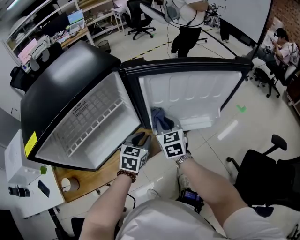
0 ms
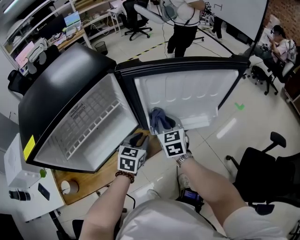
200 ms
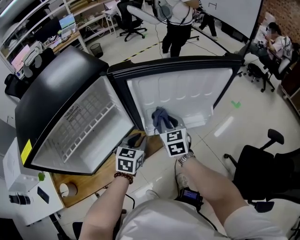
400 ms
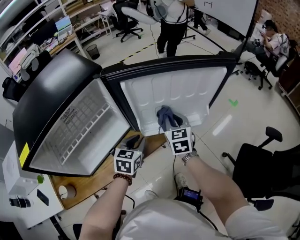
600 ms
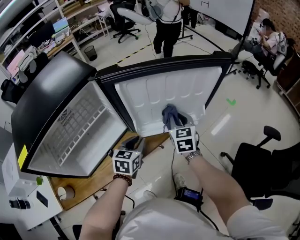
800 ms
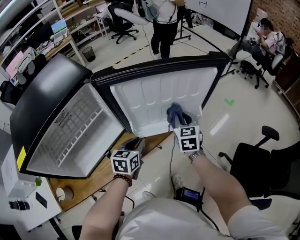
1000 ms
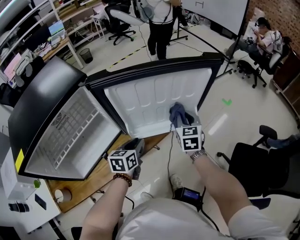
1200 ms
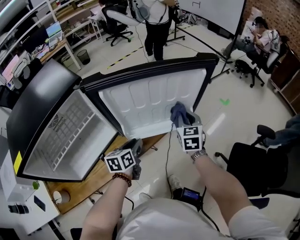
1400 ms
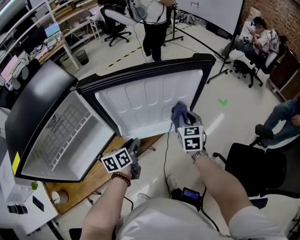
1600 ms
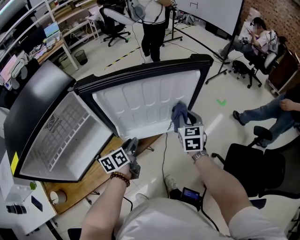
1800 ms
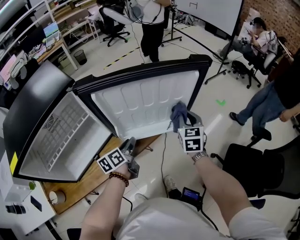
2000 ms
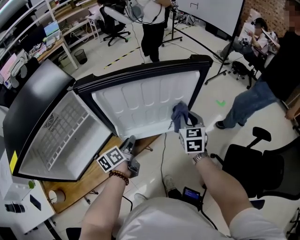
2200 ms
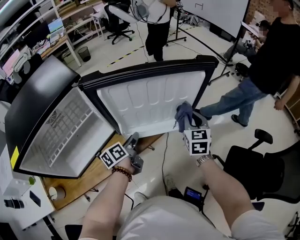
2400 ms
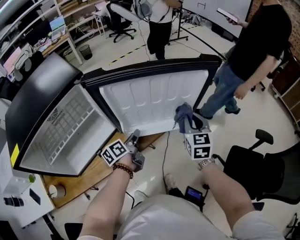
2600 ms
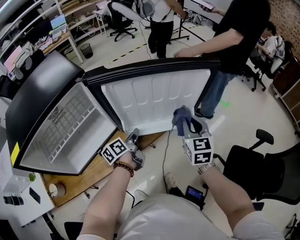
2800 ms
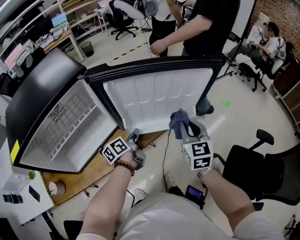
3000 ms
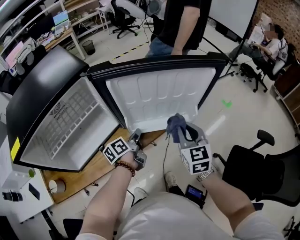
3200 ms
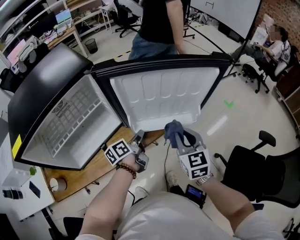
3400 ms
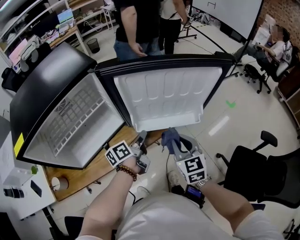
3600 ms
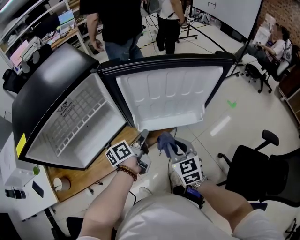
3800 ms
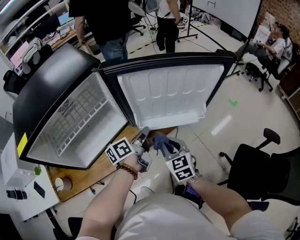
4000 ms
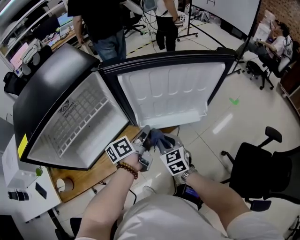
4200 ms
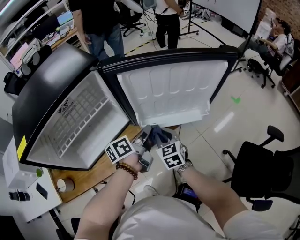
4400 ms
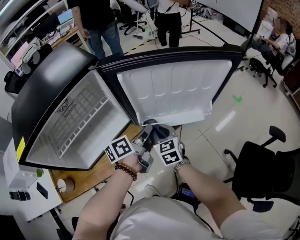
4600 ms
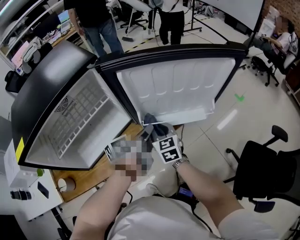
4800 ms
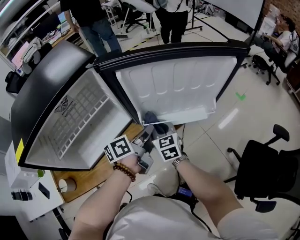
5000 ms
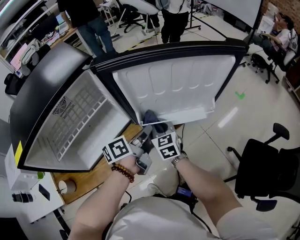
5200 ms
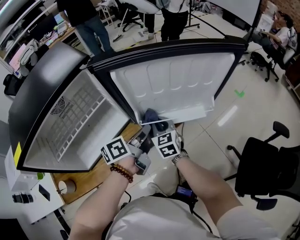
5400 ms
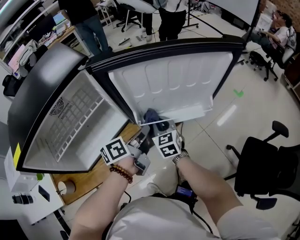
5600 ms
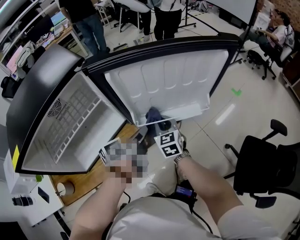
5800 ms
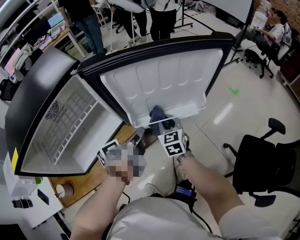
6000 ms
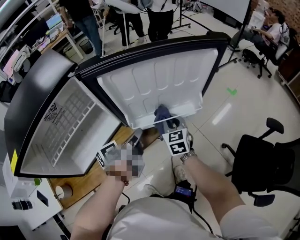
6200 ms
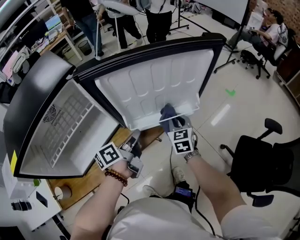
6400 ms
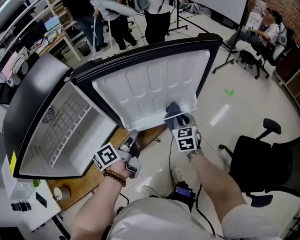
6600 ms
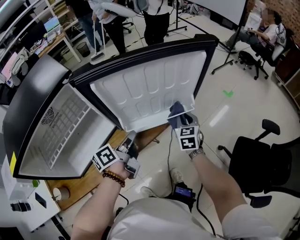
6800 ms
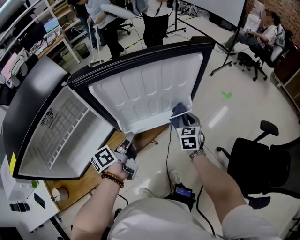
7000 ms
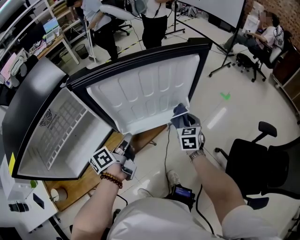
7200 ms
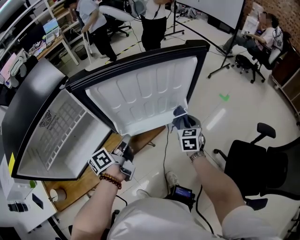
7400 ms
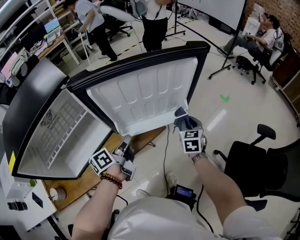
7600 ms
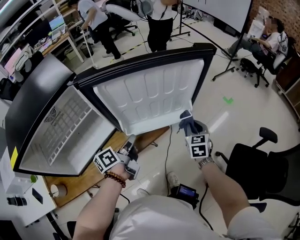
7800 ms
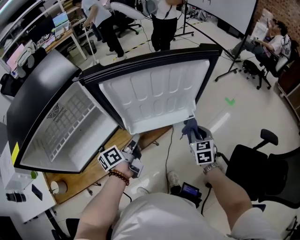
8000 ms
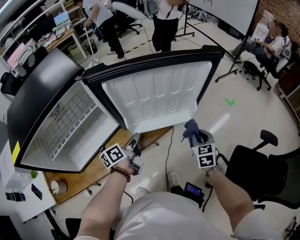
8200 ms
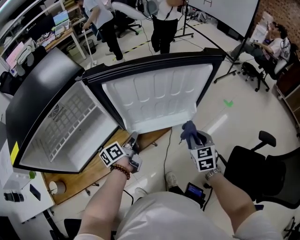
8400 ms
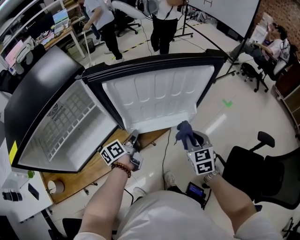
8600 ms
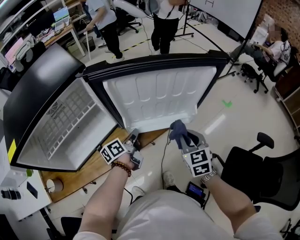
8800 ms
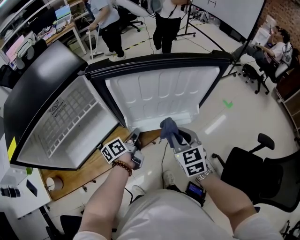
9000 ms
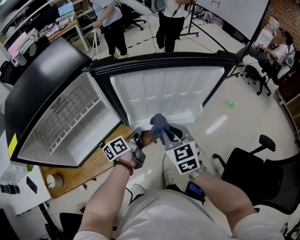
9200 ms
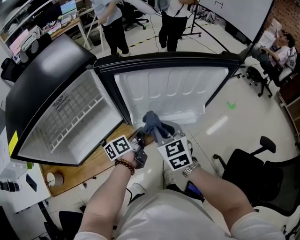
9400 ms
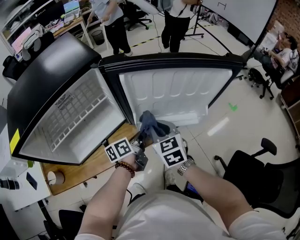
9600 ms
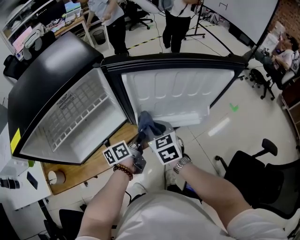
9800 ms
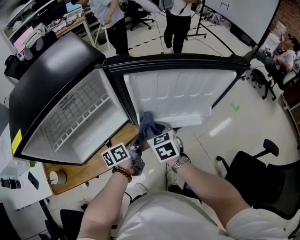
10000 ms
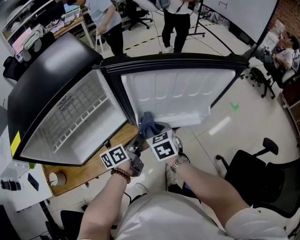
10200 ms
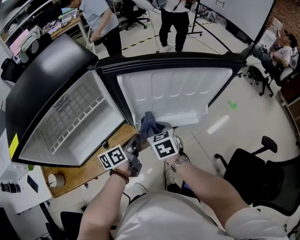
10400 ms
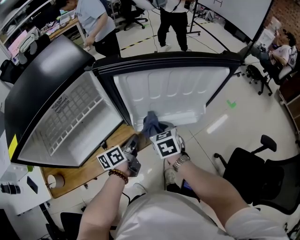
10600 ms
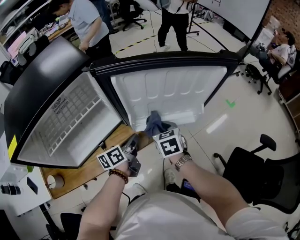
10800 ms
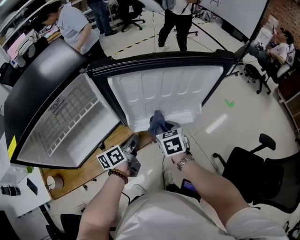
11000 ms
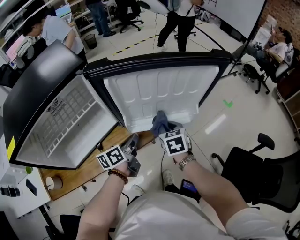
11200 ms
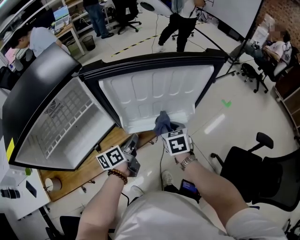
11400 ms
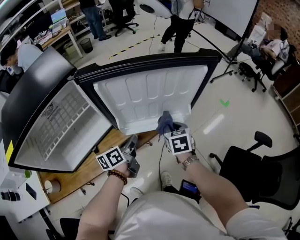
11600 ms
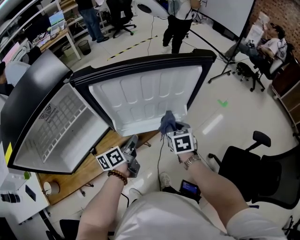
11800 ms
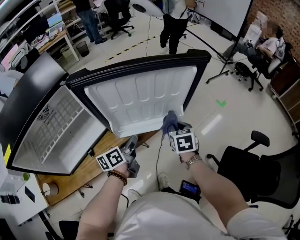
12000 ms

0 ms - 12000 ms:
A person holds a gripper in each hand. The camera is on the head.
0 ms - 1600 ms: The right gripper travels to the right by roughly 25 cm, and swivels roughly 20 degrees, while the left gripper moves to the right, approximately 5 cm, and turns by about 40 degrees.
1600 ms - 3000 ms: The right gripper travels backward by some 10 cm; the left gripper turns by approximately 30 degrees, and closes up.
3000 ms - 4400 ms: The left gripper goes approximately 5 cm upward. The right gripper heads to the left and downward, covering about 20 cm.
4400 ms - 6000 ms: The right gripper travels forward by some 5 cm.
6000 ms - 7600 ms: The right gripper shifts approximately 20 cm to the right.
7600 ms - 9000 ms: The left gripper travels downward by roughly 5 cm. Meanwhile the right gripper is displaced to the left, backward and upward by approximately 15 cm, and changes its angle by approximately 30 degrees.
9000 ms - 10400 ms: The right gripper moves to the left and downward, roughly 15 cm.
10400 ms - 12000 ms: The right gripper is displaced to the right by some 20 cm; the left gripper shifts some 10 cm to the right.

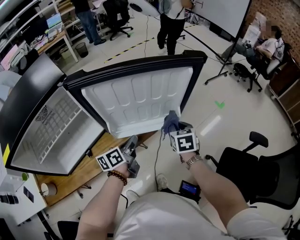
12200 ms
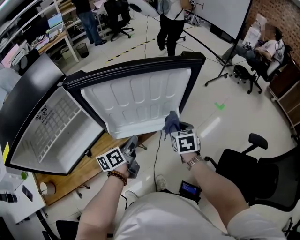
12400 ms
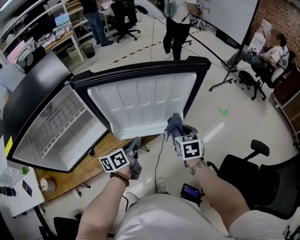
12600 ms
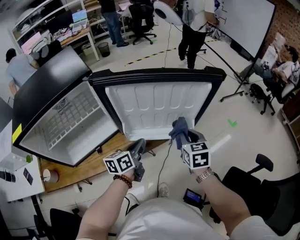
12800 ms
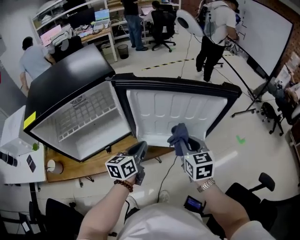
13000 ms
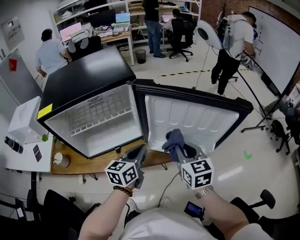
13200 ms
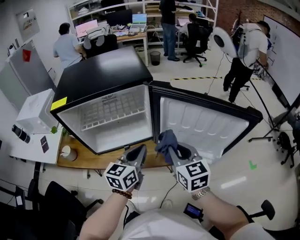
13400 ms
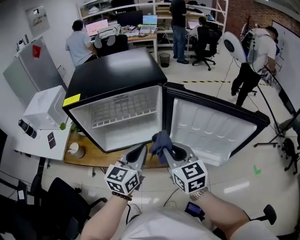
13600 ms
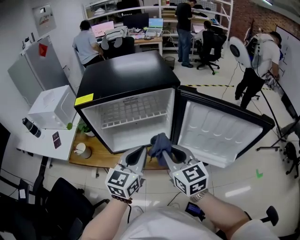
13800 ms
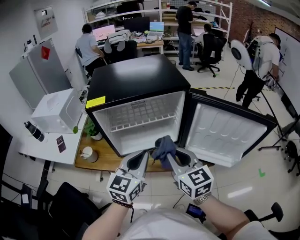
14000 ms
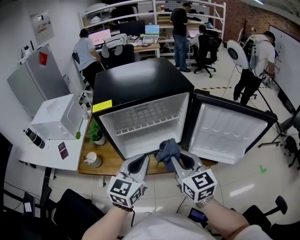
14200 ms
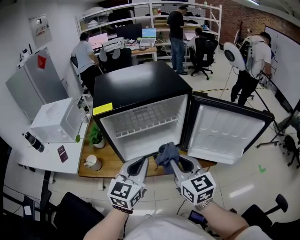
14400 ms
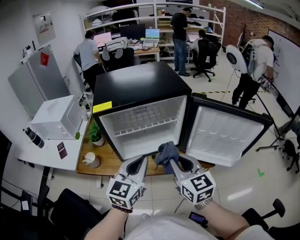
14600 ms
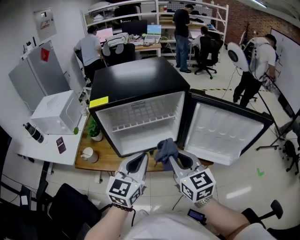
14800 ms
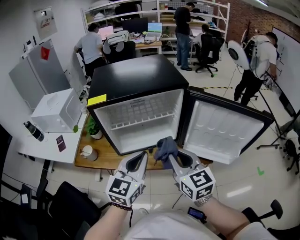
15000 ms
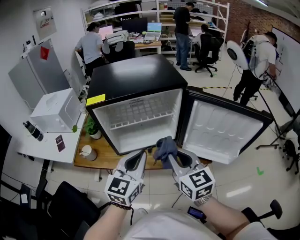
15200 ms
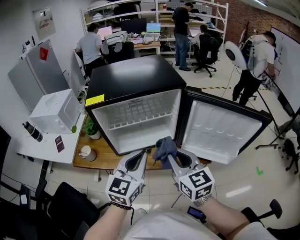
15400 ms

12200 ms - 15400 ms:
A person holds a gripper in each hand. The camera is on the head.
12200 ms - 13800 ms: The left gripper changes place by roughly 30 cm, and changes its angle by roughly 60 degrees. The right gripper shifts by approximately 40 cm, and tilts its fingers about 30 degrees upward.
13800 ms - 15400 ms: The left gripper changes place by some 5 cm.

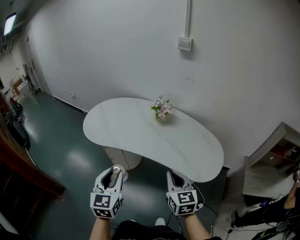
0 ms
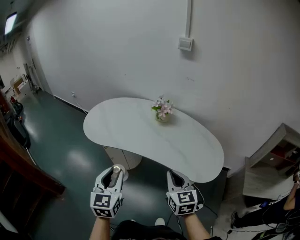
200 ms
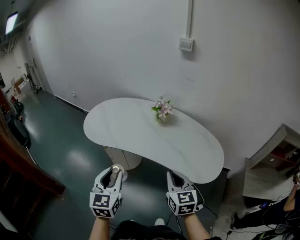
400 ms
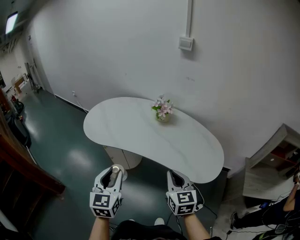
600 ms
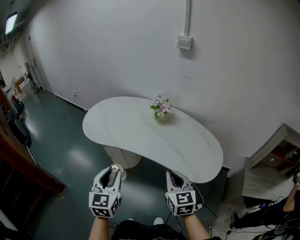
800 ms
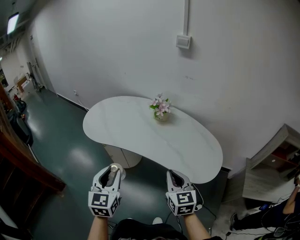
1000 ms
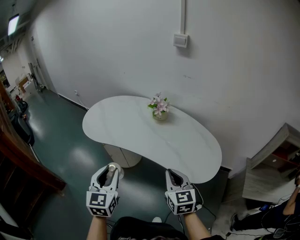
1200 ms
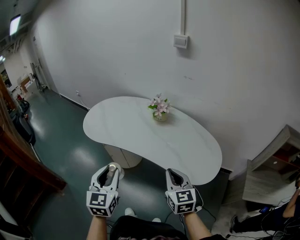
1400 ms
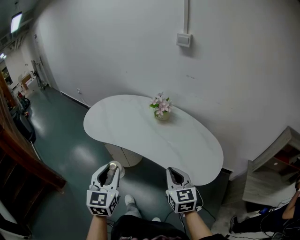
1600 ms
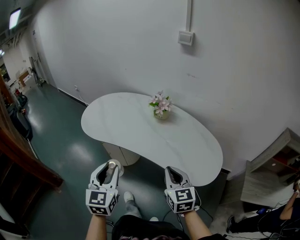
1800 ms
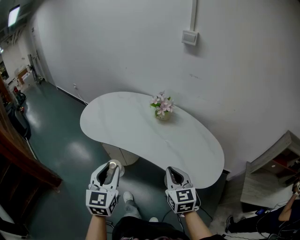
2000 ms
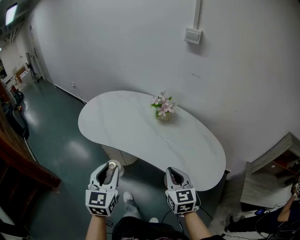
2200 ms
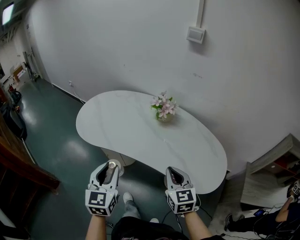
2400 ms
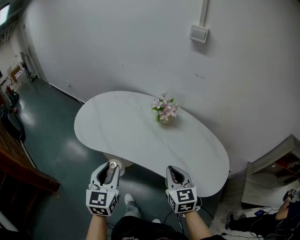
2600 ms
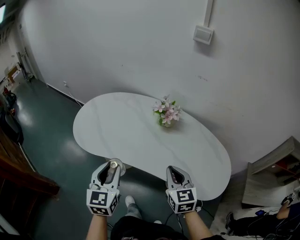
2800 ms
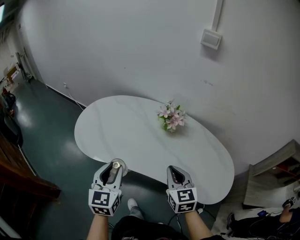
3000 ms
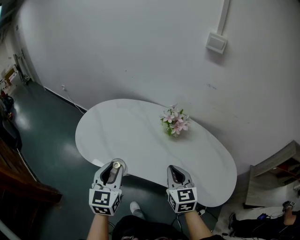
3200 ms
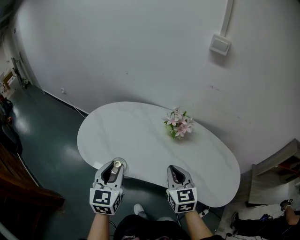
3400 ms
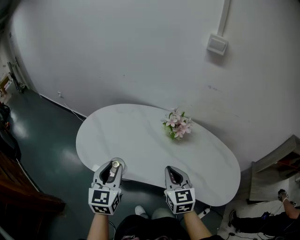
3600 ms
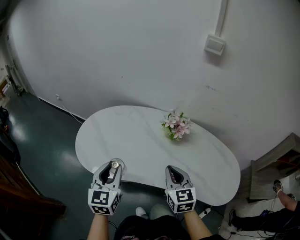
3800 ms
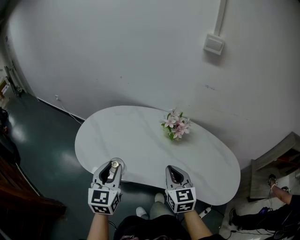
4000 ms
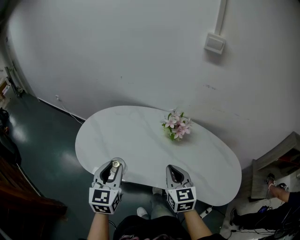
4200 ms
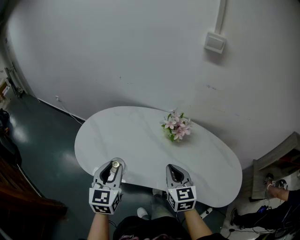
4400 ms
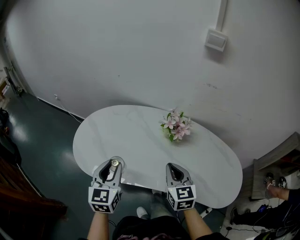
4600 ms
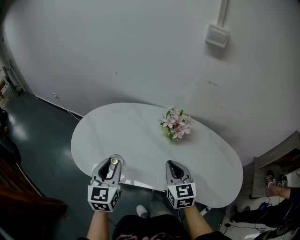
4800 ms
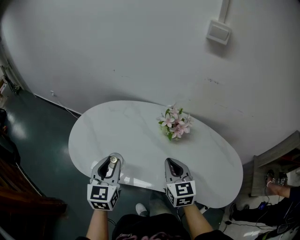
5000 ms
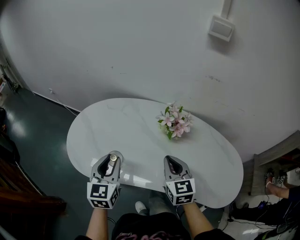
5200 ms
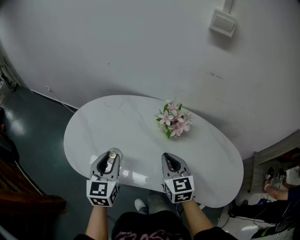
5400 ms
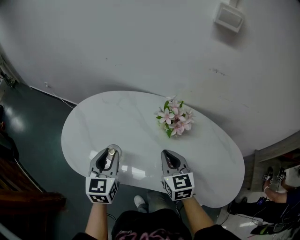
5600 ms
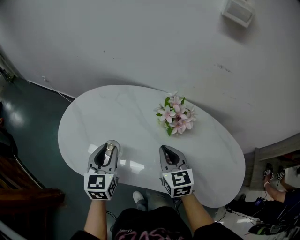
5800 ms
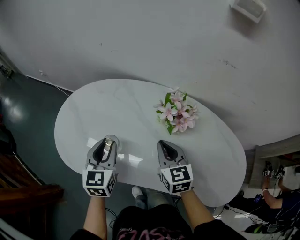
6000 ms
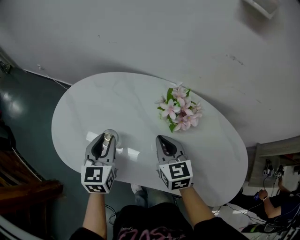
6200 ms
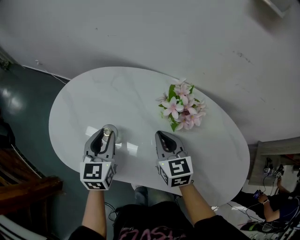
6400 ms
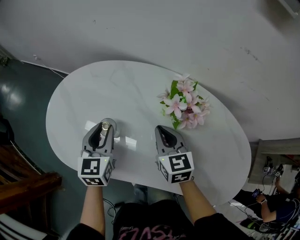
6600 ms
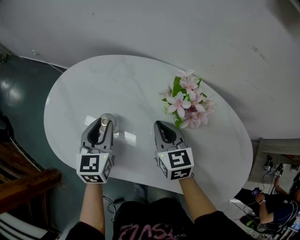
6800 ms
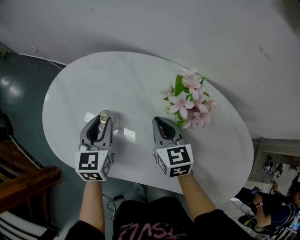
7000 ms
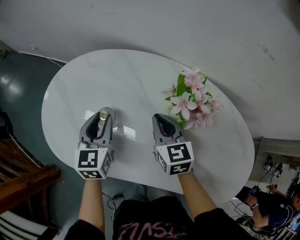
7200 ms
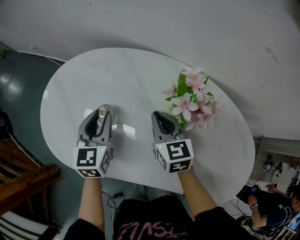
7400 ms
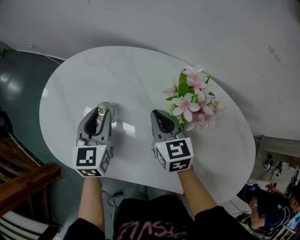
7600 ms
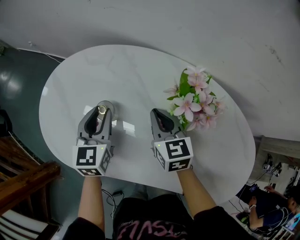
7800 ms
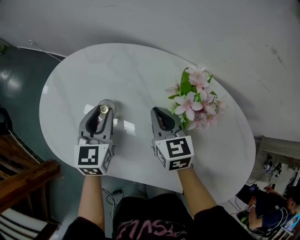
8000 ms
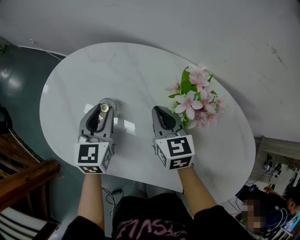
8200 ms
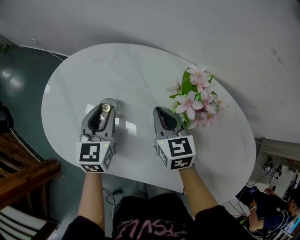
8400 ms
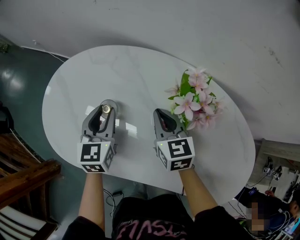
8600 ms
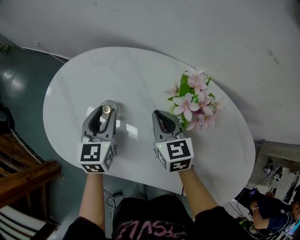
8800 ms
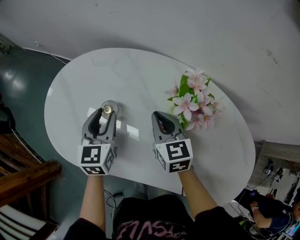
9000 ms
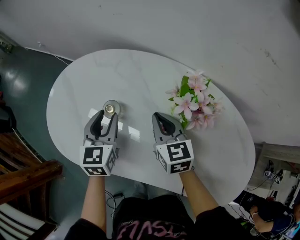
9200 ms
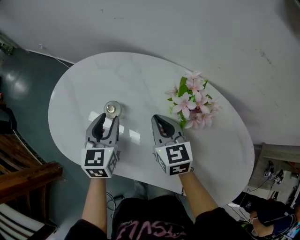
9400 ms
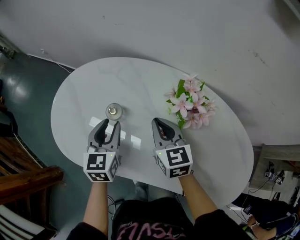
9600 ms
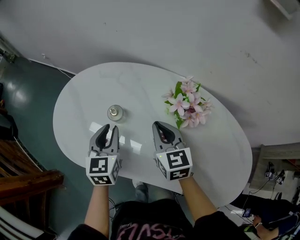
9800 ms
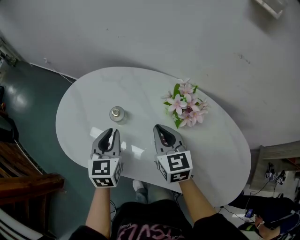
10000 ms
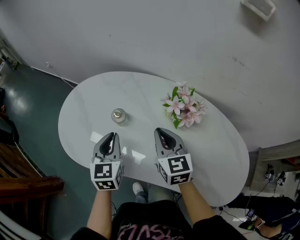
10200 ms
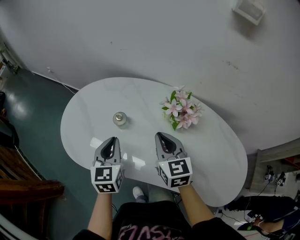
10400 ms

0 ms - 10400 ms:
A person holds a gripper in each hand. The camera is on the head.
0 ms - 1400 ms: The right gripper moves to the right, roughly 5 cm.
1400 ms - 3000 ms: Both grippers move forward, roughly 20 cm.
3000 ms - 4400 ms: The grippers both shift forward and to the left by about 10 cm.
4400 ms - 6000 ms: The grippers both shift forward and downward by roughly 15 cm.
6000 ms - 7400 ms: Both grippers move forward and downward, some 10 cm.
7400 ms - 9000 ms: Neither gripper changes place.
9000 ms - 10400 ms: The right gripper heads upward and backward, covering roughly 15 cm. The left gripper heads backward and upward, covering roughly 10 cm, and closes up.
